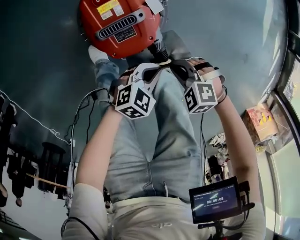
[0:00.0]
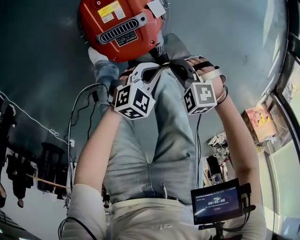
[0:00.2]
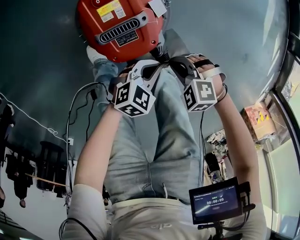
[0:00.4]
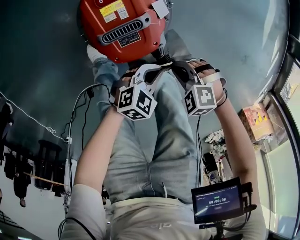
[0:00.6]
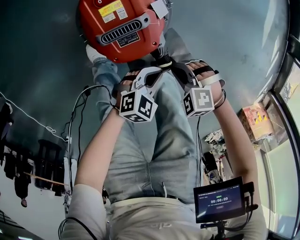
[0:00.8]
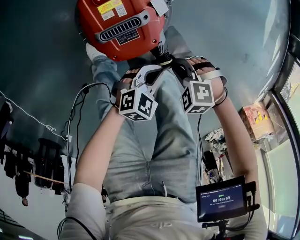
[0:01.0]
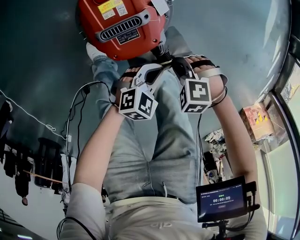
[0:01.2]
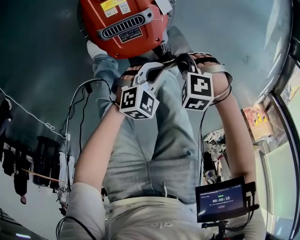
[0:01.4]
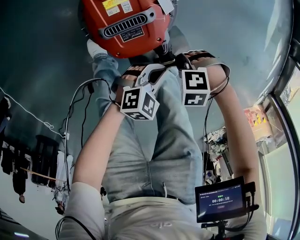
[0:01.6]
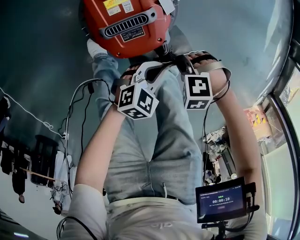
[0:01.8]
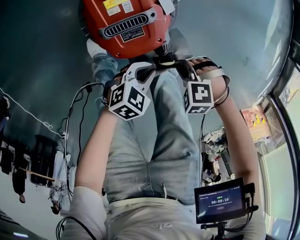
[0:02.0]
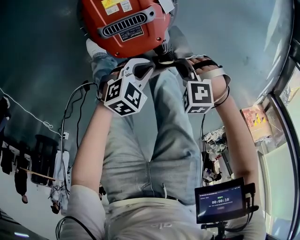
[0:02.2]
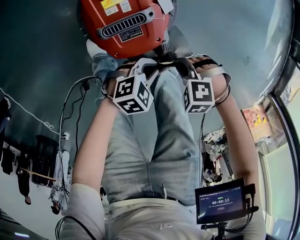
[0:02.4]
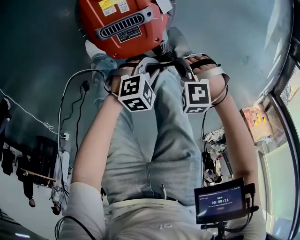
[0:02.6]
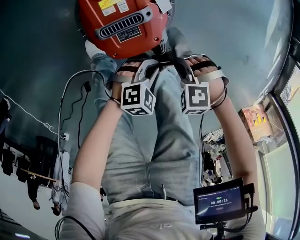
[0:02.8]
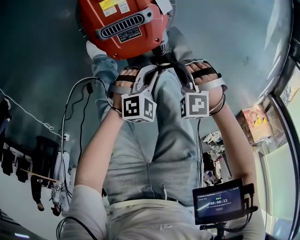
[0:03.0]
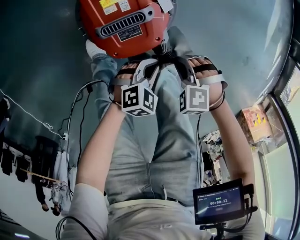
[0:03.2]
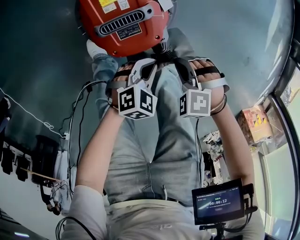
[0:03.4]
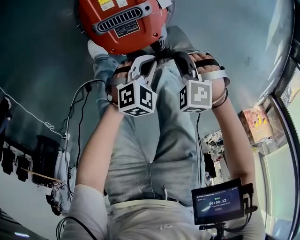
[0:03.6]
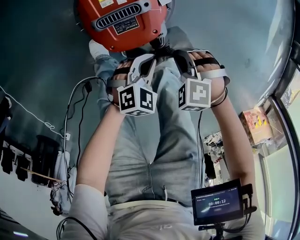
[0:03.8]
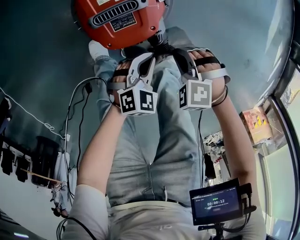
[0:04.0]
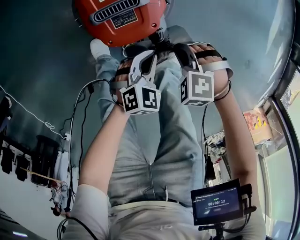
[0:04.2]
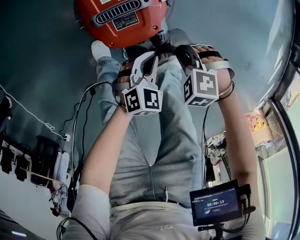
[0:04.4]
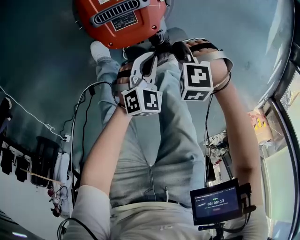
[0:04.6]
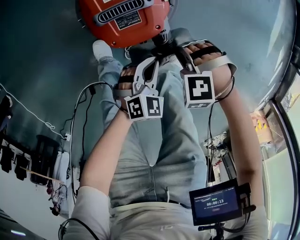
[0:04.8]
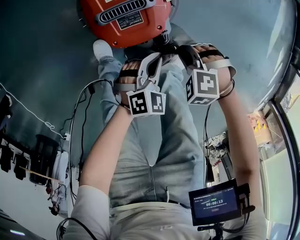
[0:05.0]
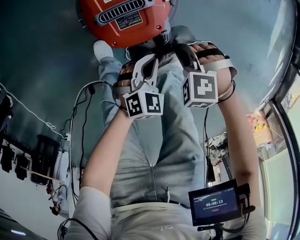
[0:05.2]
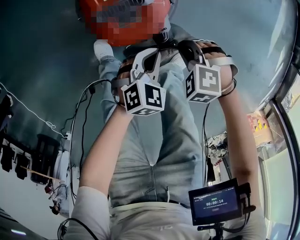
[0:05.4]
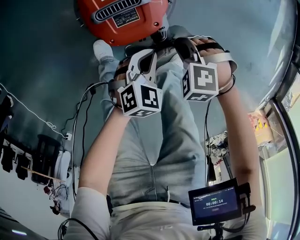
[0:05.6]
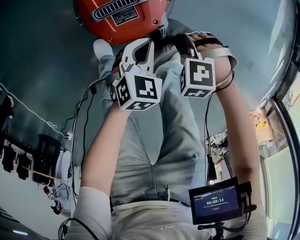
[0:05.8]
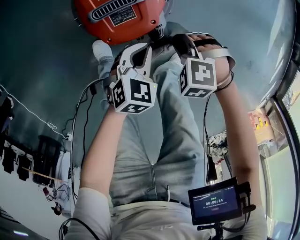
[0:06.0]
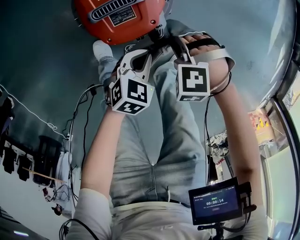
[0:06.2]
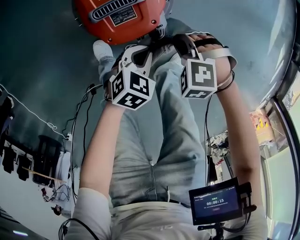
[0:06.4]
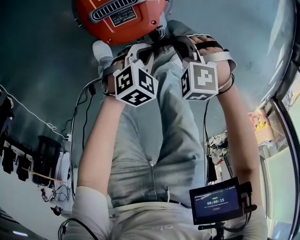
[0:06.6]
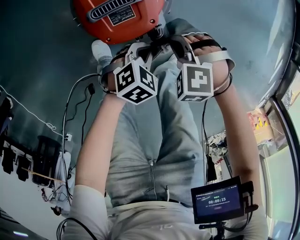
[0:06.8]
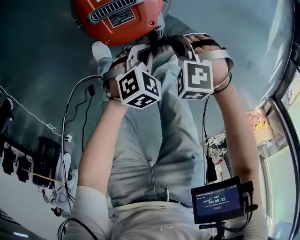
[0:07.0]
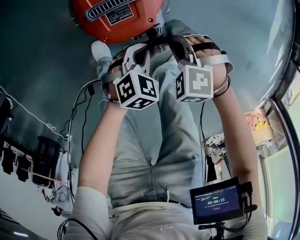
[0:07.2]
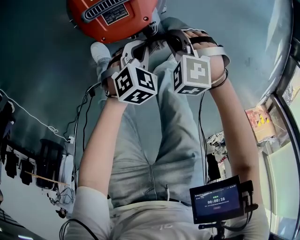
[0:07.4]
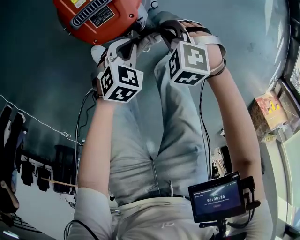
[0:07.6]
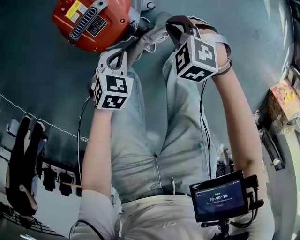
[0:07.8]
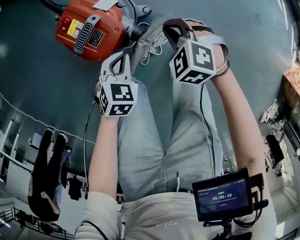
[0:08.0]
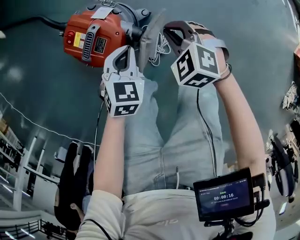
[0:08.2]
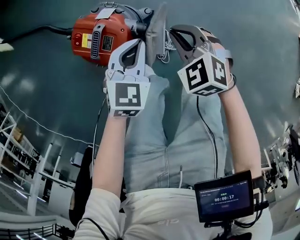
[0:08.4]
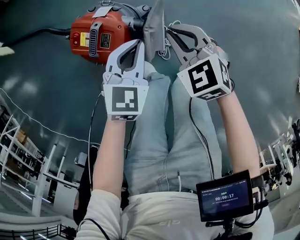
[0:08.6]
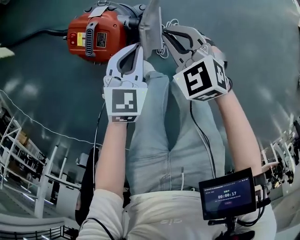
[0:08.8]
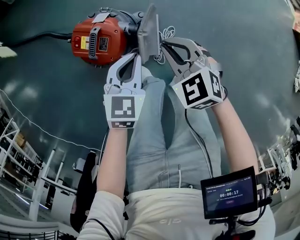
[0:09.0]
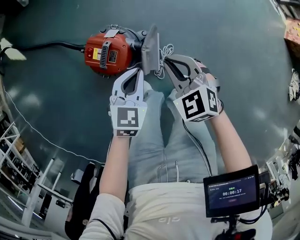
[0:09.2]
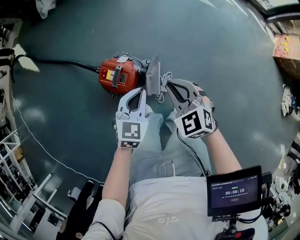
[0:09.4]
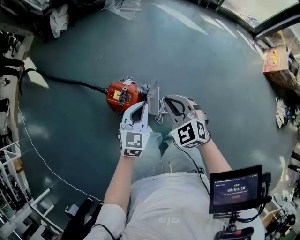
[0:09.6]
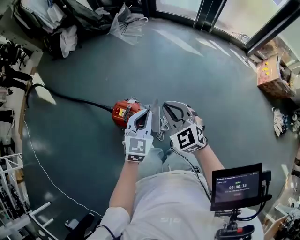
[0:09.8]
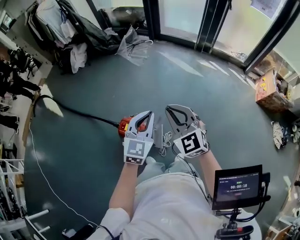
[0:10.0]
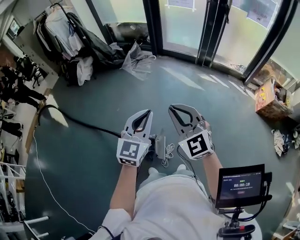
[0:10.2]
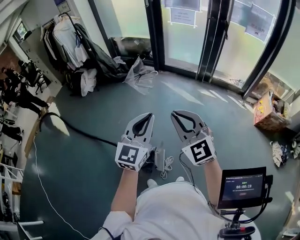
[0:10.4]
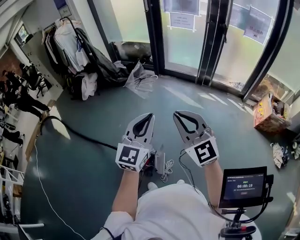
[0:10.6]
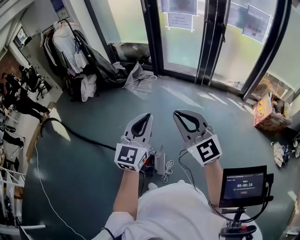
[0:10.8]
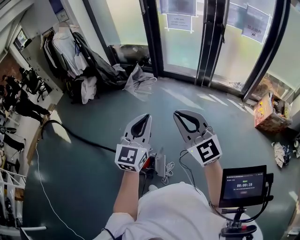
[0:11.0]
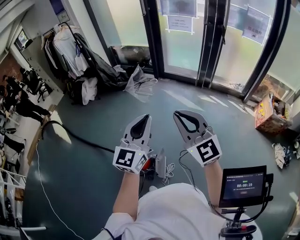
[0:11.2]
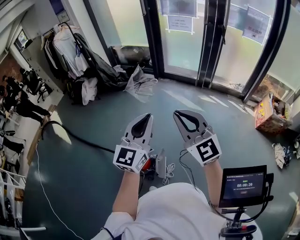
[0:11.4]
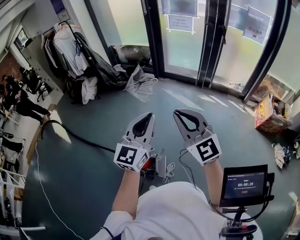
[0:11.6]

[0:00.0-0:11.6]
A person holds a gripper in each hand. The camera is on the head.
0:00.0 to 0:01.4: The right gripper turns by approximately 20 degrees.
0:01.4 to 0:02.8: The grippers make only small movements.
0:02.8 to 0:04.4: The left gripper changes place by some 10 cm, and swivels approximately 30 degrees. Meanwhile the right gripper moves some 10 cm.
0:04.4 to 0:05.8: The left gripper changes place by some 5 cm.
0:07.2 to 0:08.8: Both grippers travel together upward, approximately 15 cm. The right gripper rotates around the line of its fingers by approximately 70 degrees, clockwise from behind. The left gripper turns by about 30 degrees.
0:08.8 to 0:10.2: The grippers both shift upward by some 60 cm. The right gripper angles its fingers upward, by some 40 degrees; the left gripper points its fingers approximately 40 degrees further upward.
0:10.2 to 0:11.6: Both grippers move upward, about 10 cm.

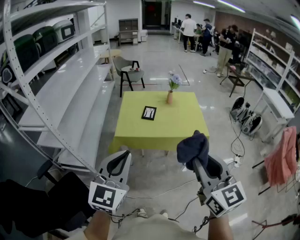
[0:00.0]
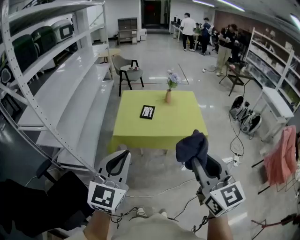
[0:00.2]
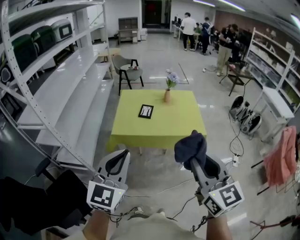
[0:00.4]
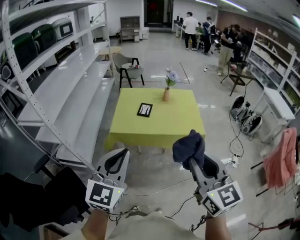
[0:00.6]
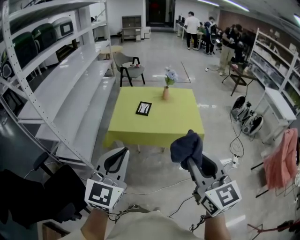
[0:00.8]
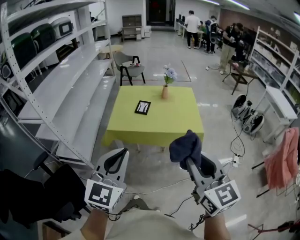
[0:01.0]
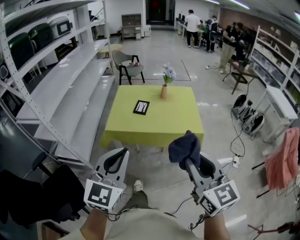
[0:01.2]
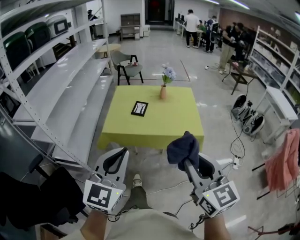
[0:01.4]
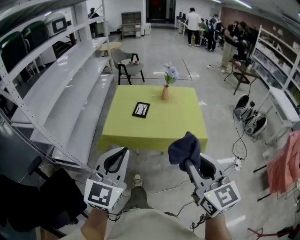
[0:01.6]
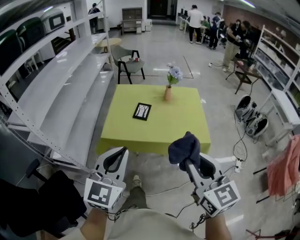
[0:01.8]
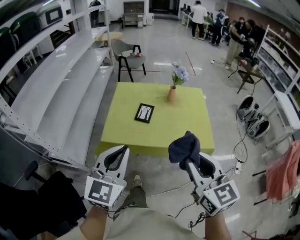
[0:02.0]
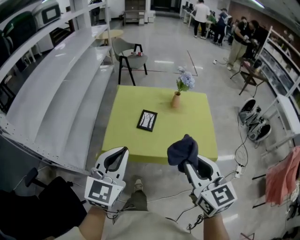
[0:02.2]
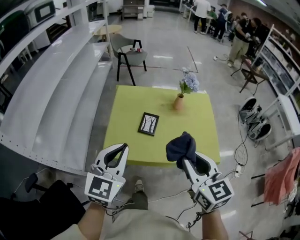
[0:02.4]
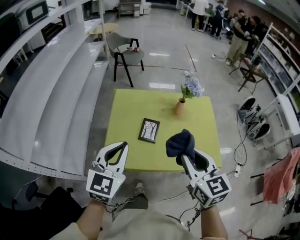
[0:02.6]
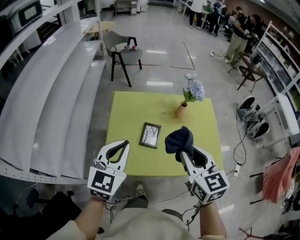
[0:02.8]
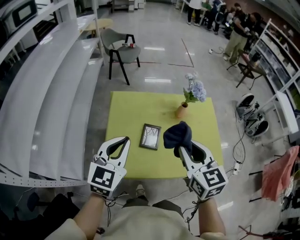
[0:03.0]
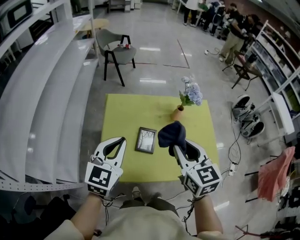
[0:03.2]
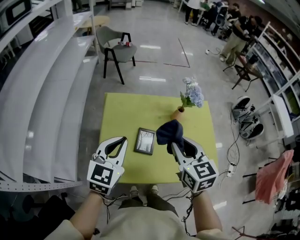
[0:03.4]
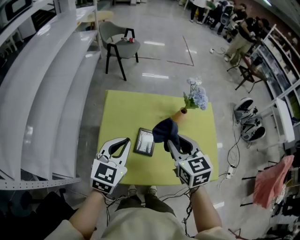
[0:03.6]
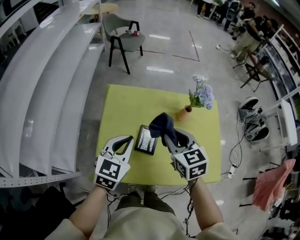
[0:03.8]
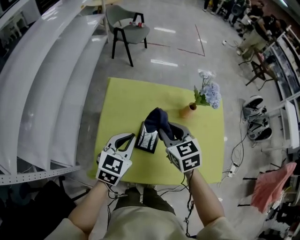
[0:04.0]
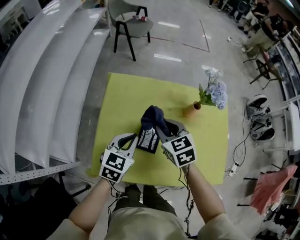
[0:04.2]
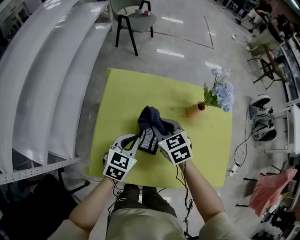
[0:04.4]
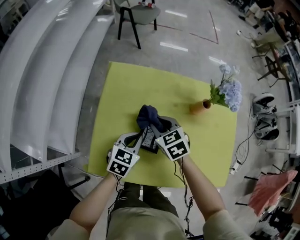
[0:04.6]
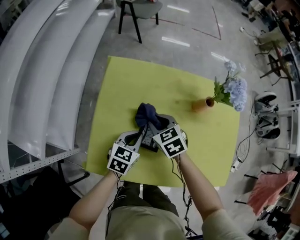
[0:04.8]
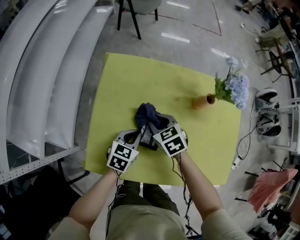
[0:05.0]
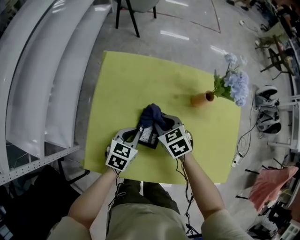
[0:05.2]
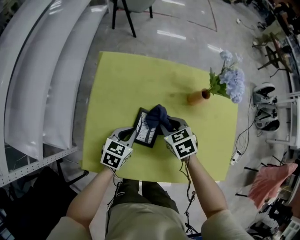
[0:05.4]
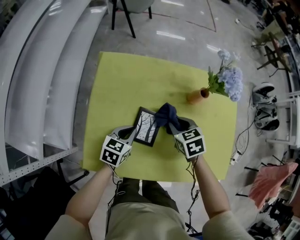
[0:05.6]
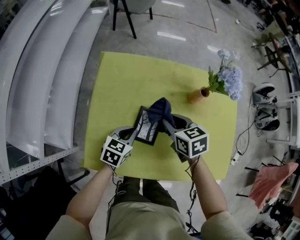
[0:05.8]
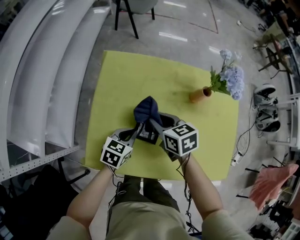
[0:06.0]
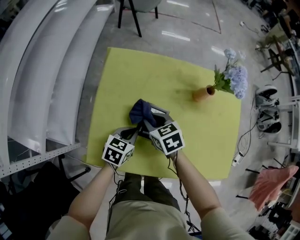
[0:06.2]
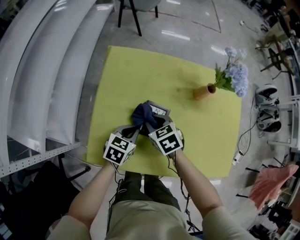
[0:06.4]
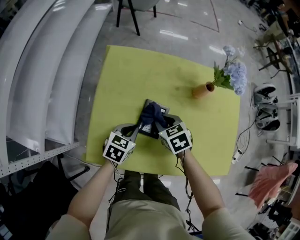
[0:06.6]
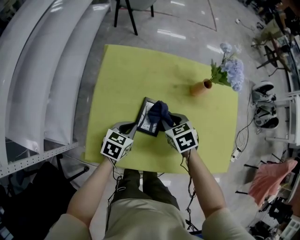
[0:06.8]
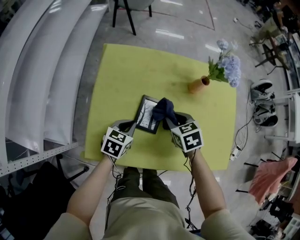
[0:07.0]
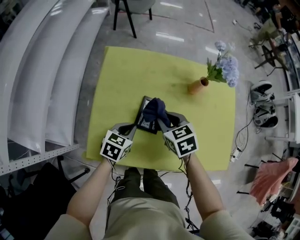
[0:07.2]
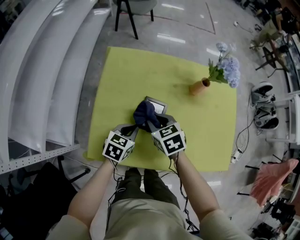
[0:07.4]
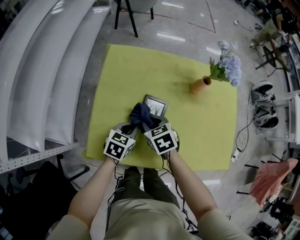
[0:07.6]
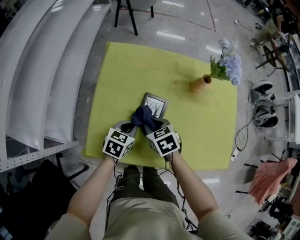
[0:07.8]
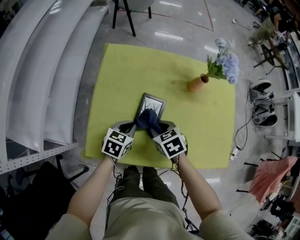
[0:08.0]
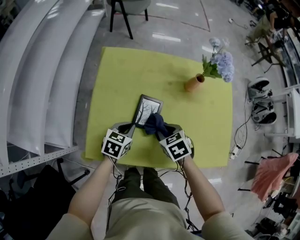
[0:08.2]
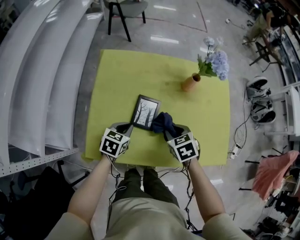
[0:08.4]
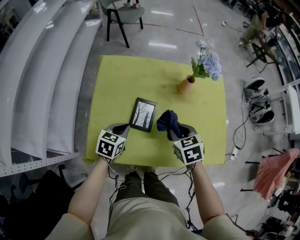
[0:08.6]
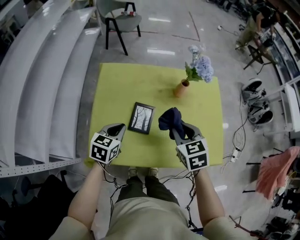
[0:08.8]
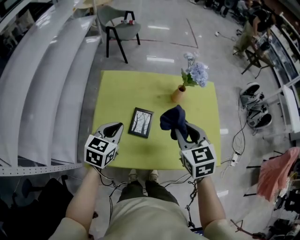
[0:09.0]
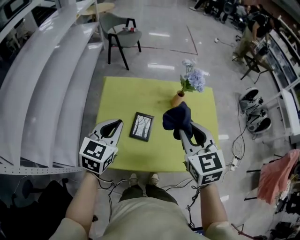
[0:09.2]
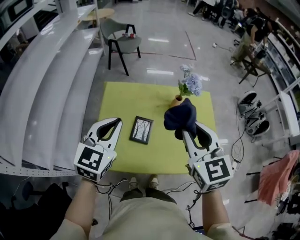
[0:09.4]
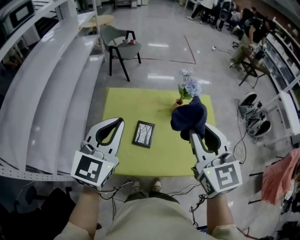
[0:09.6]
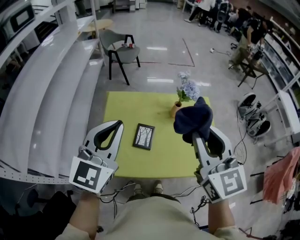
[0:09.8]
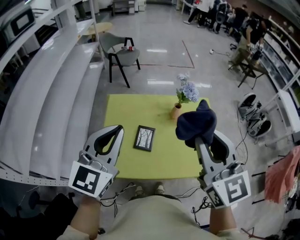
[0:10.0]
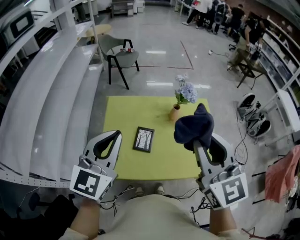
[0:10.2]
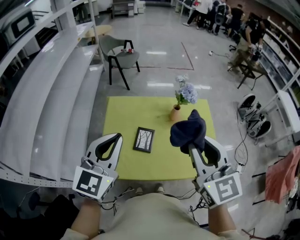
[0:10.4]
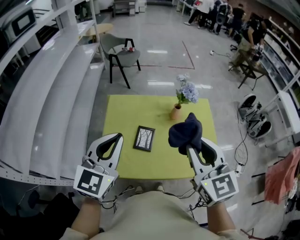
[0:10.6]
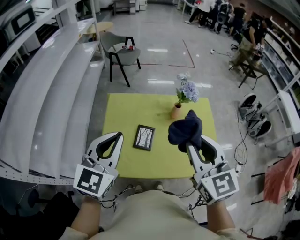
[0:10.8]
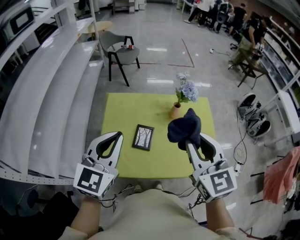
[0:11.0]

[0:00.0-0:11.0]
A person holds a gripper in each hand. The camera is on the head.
0:00.0 to 0:01.6: The right gripper heads forward, downward and to the right, covering some 15 cm, while the left gripper is displaced forward, to the right and downward by some 15 cm.
0:01.6 to 0:03.2: Both grippers are carried forward, approximately 50 cm.
0:03.2 to 0:04.8: The left gripper goes approximately 30 cm downward, and rotates approximately 30 degrees. Meanwhile the right gripper goes some 35 cm downward and forward, and swivels approximately 40 degrees.
0:04.8 to 0:06.2: The right gripper reaches some 10 cm to the right, then returns.
0:06.2 to 0:07.8: The right gripper is displaced backward by some 5 cm, and travels to the right and back again, about 10 cm each way.
0:07.8 to 0:09.4: The grippers both shift upward by some 35 cm. The left gripper turns by approximately 40 degrees. Meanwhile the right gripper points its fingers about 40 degrees further upward.
0:09.4 to 0:11.0: The left gripper moves upward, about 5 cm.

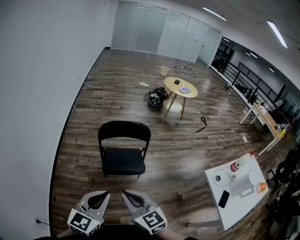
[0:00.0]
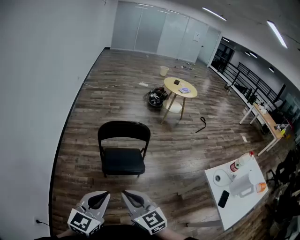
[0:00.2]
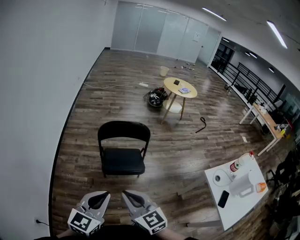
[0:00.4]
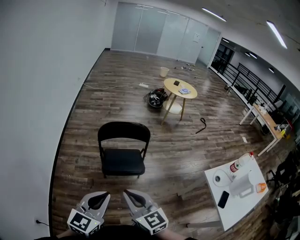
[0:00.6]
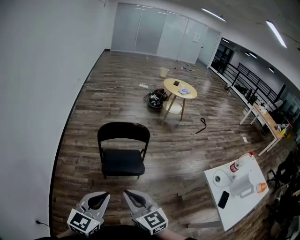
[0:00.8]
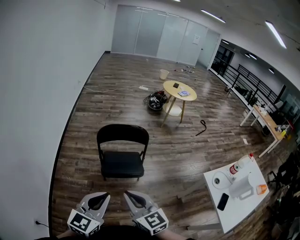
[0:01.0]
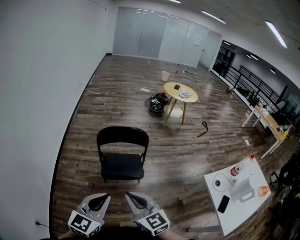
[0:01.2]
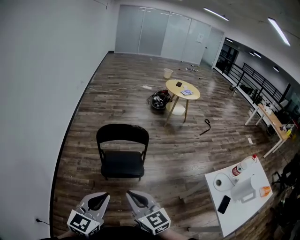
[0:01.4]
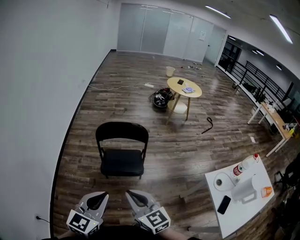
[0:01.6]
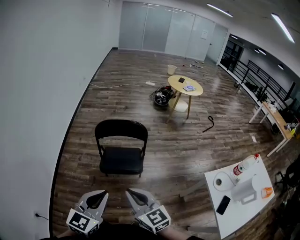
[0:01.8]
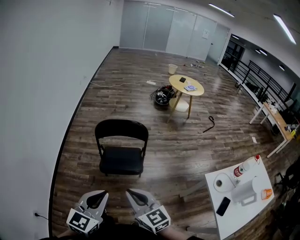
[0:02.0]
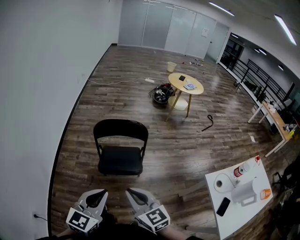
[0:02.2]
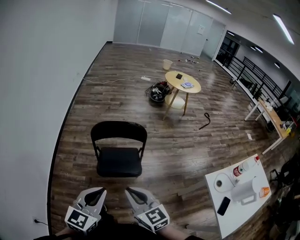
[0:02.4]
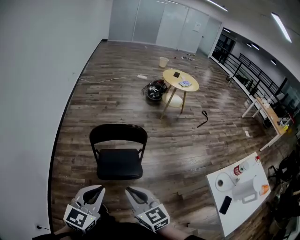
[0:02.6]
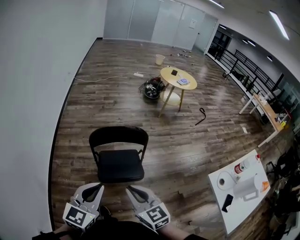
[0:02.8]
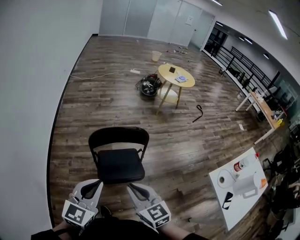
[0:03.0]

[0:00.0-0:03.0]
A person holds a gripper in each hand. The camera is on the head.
0:00.0 to 0:01.6: The two grippers go about 5 cm to the right.
0:01.6 to 0:03.0: The right gripper moves forward, approximately 15 cm; the left gripper shifts approximately 20 cm forward and to the left.
